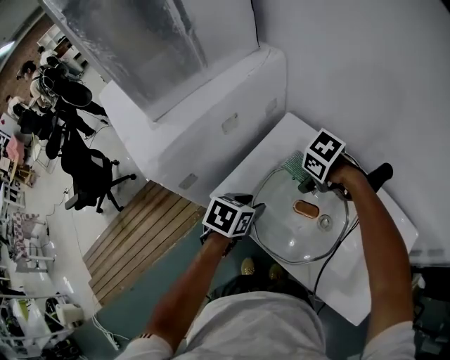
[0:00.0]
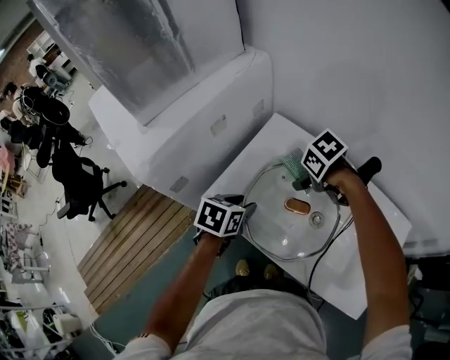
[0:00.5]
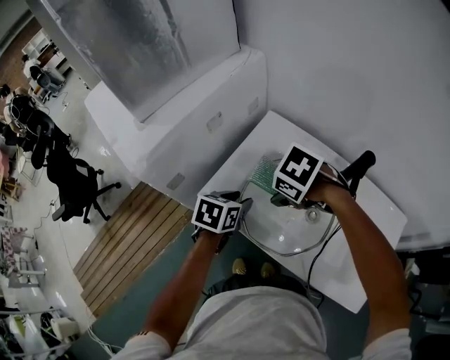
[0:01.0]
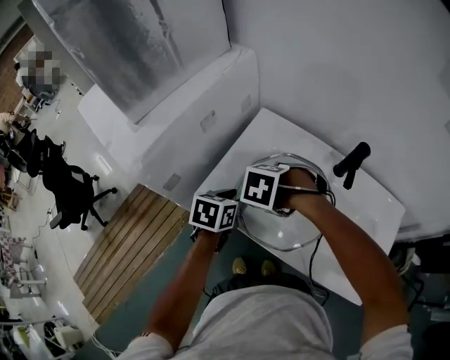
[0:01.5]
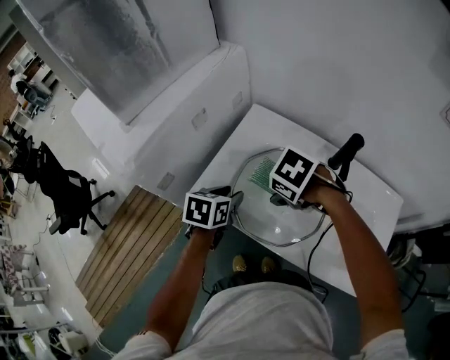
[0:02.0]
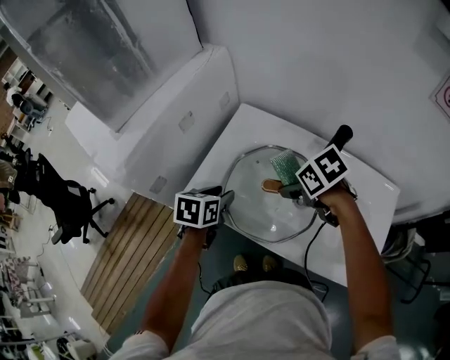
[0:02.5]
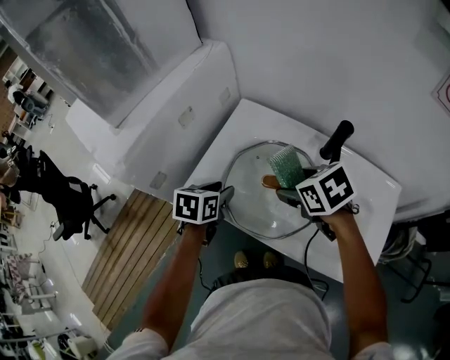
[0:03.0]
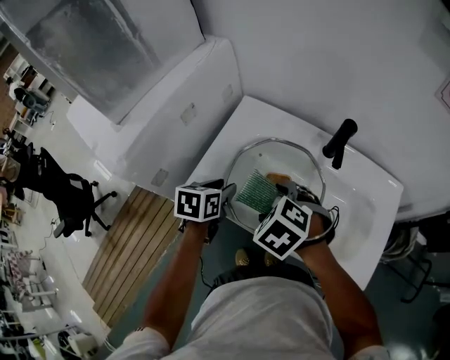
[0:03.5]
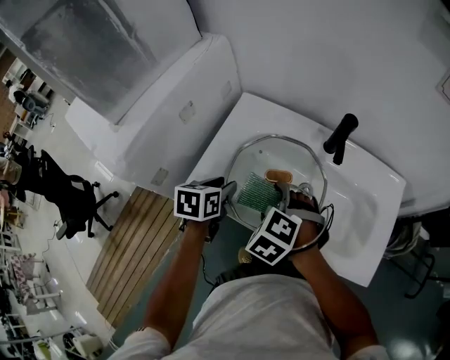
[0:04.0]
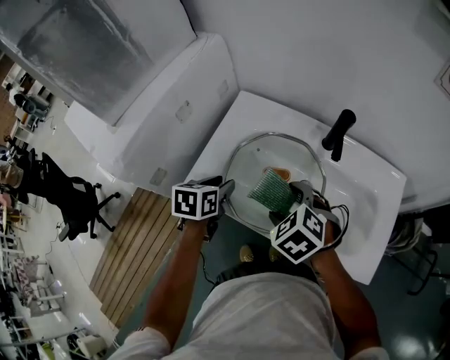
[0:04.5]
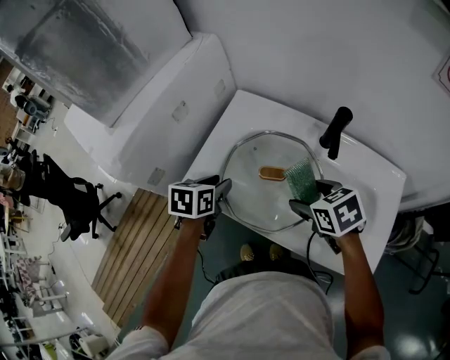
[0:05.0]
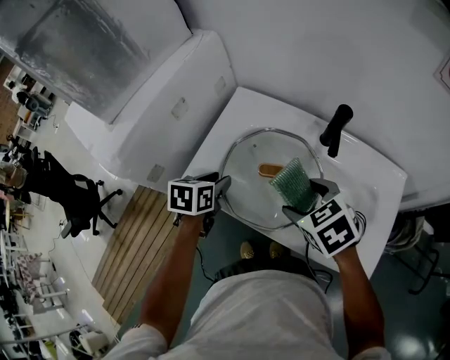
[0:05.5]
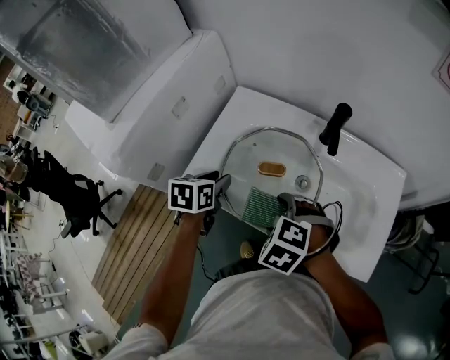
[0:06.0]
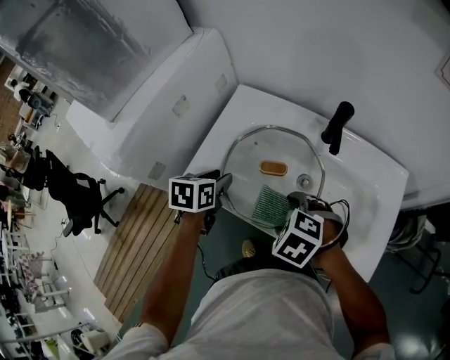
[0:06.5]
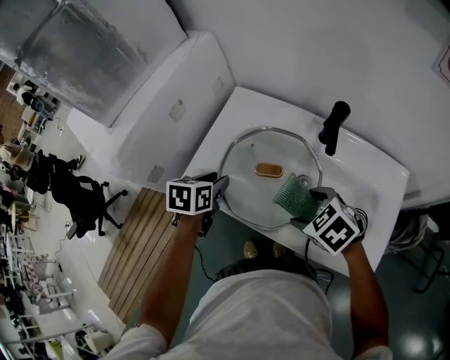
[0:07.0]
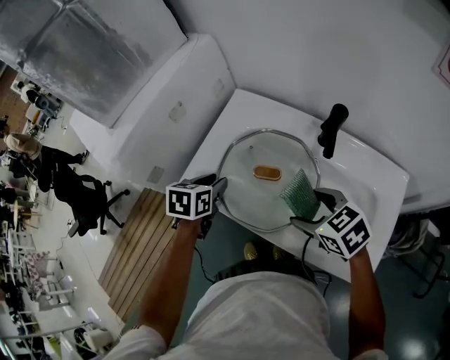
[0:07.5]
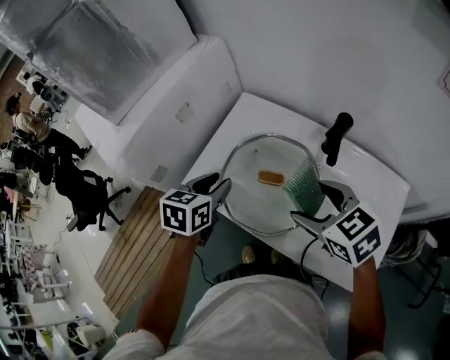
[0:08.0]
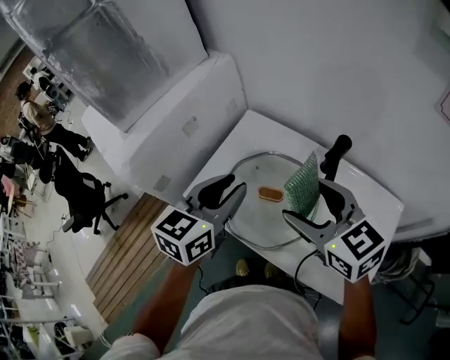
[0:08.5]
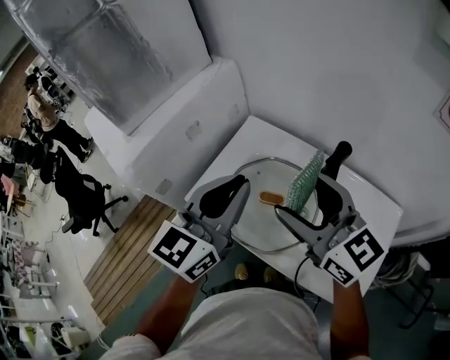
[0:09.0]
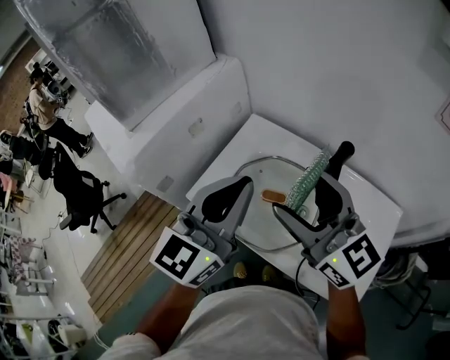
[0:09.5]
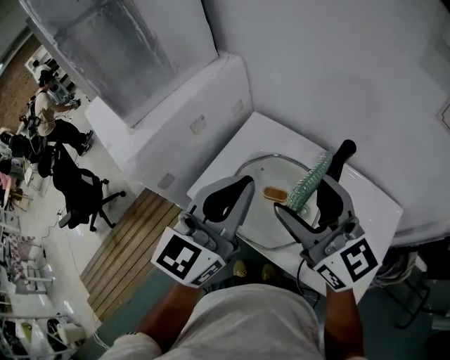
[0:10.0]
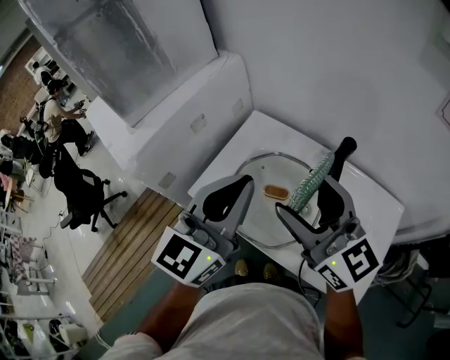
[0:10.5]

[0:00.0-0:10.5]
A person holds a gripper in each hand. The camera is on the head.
0:00.0 to 0:02.0: The right gripper moves about 10 cm.
0:02.0 to 0:04.0: The right gripper changes place by about 5 cm, and rotates about 30 degrees.
0:04.0 to 0:06.5: The right gripper heads backward and to the right, covering about 5 cm.
0:06.5 to 0:08.5: The two grippers go roughly 20 cm upward. The right gripper points its fingers about 50 degrees further upward. Meanwhile the left gripper points its fingers approximately 30 degrees further upward.
0:08.5 to 0:10.5: Both grippers move upward, about 10 cm. The left gripper turns by approximately 20 degrees, and closes up, while the right gripper changes its angle by roughly 30 degrees.

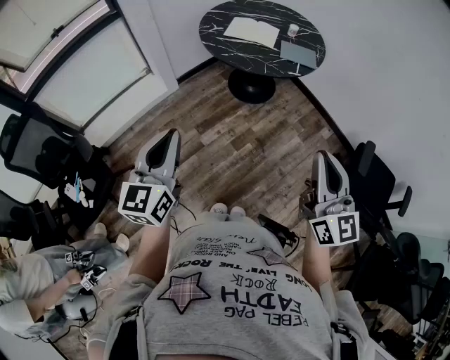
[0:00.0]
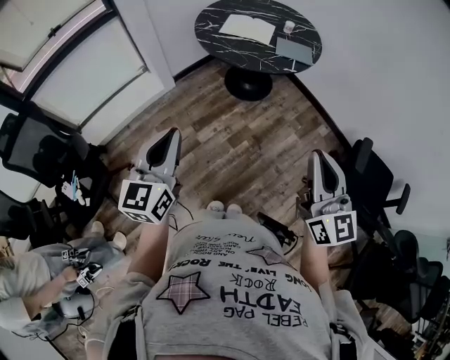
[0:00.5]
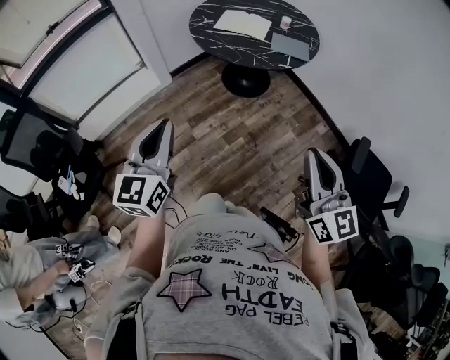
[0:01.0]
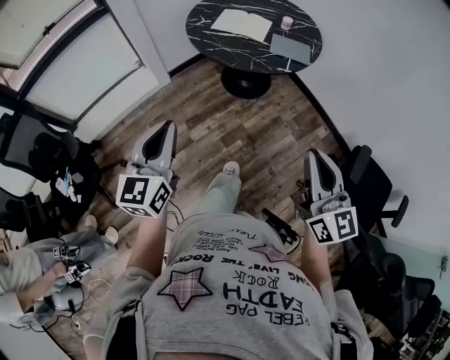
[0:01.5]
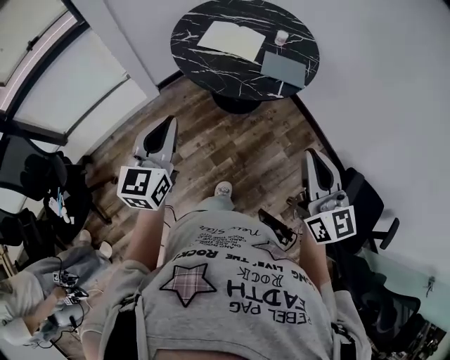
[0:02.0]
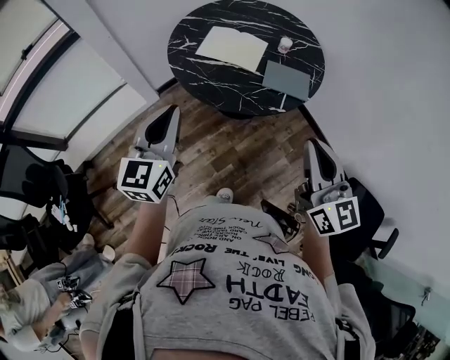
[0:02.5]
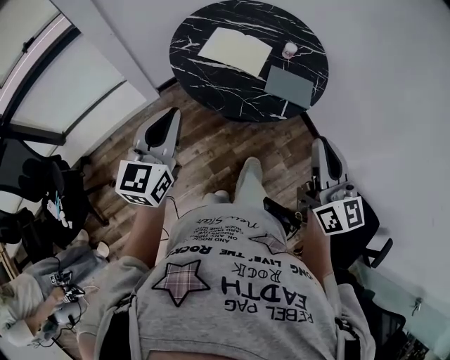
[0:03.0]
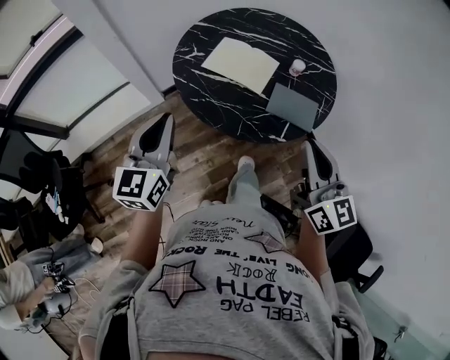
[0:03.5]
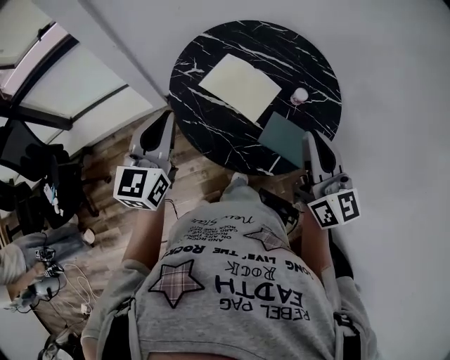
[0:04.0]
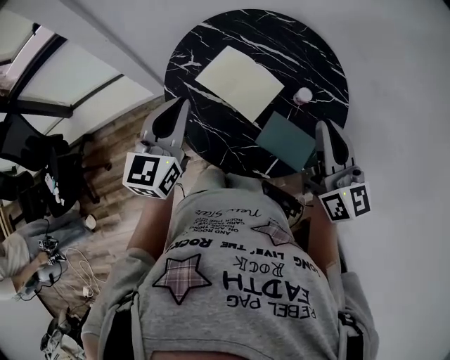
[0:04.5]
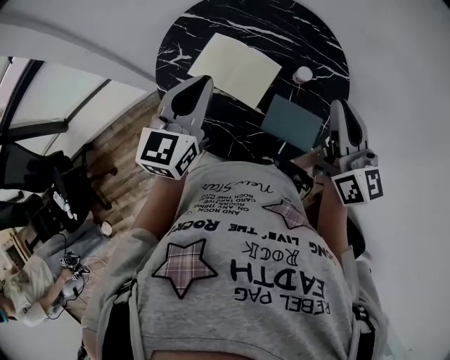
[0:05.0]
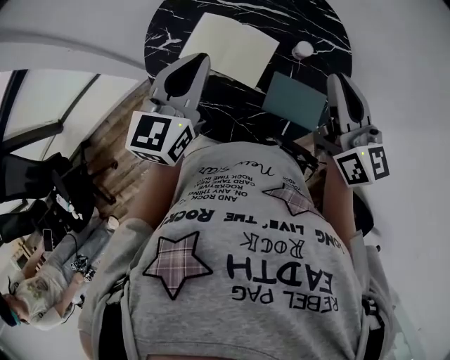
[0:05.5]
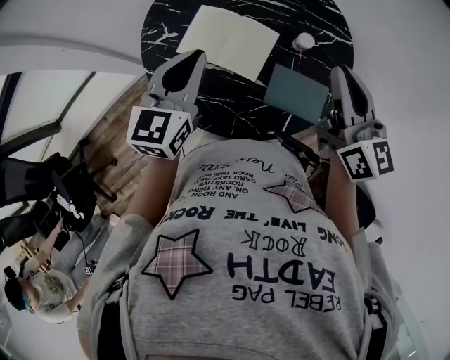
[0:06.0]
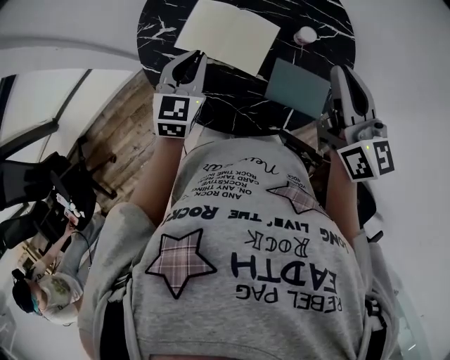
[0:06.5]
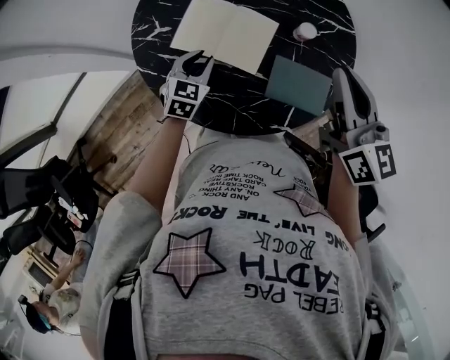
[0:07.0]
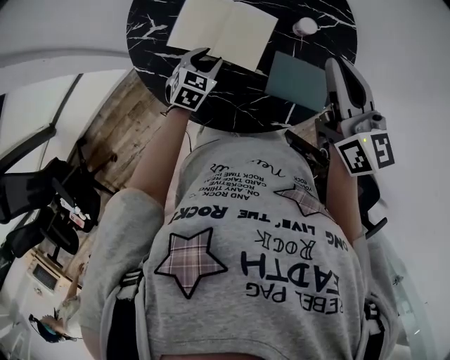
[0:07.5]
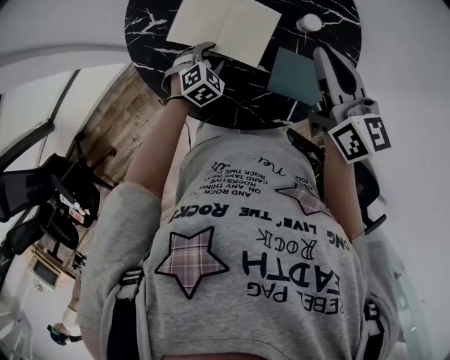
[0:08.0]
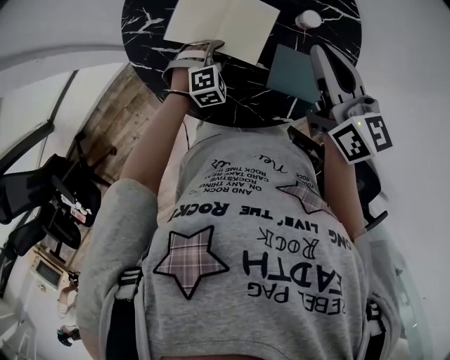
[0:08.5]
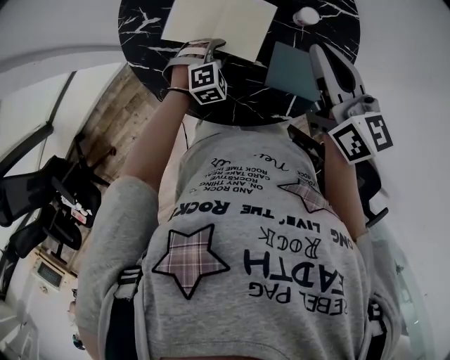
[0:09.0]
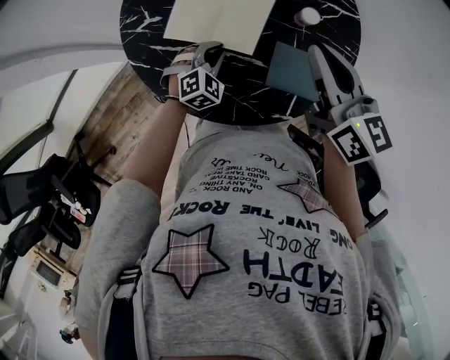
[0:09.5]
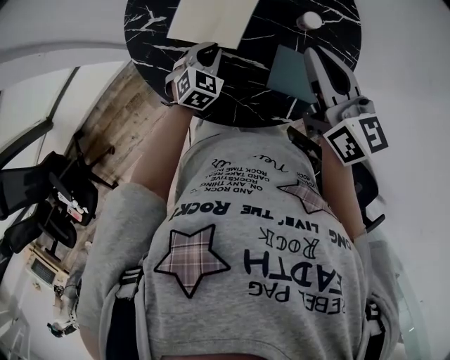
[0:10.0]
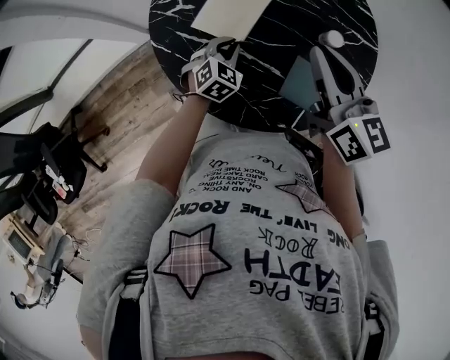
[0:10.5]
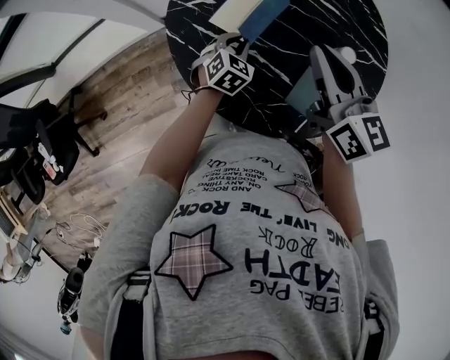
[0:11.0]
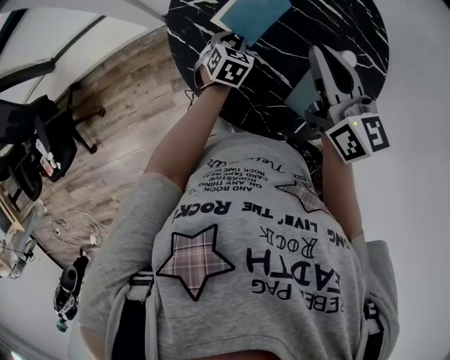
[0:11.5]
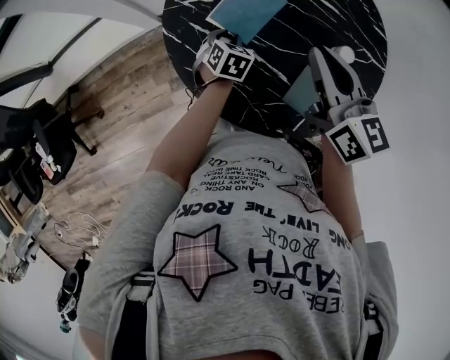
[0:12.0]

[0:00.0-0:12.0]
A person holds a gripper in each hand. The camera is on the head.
0:00.0 to 0:02.0: The grippers both shift forward and to the right by approximately 25 cm.
0:02.0 to 0:04.0: Both grippers travel together forward, some 35 cm.
0:04.0 to 0:06.0: The right gripper moves forward, roughly 10 cm. The left gripper is displaced forward, to the right and downward by some 20 cm, and swivels roughly 20 degrees.
0:06.0 to 0:08.0: The right gripper is displaced downward by some 5 cm; the left gripper moves downward, roughly 30 cm, angles its fingers downward, by some 40 degrees, and opens its fingers.
0:08.0 to 0:10.0: The left gripper closes up.
0:10.0 to 0:12.0: The grippers both shift to the left by approximately 5 cm. The left gripper swivels some 40 degrees.

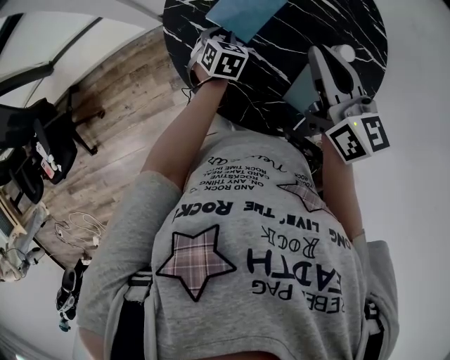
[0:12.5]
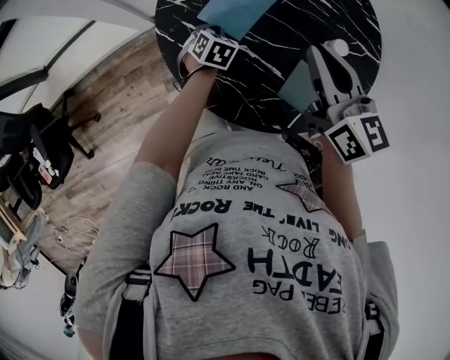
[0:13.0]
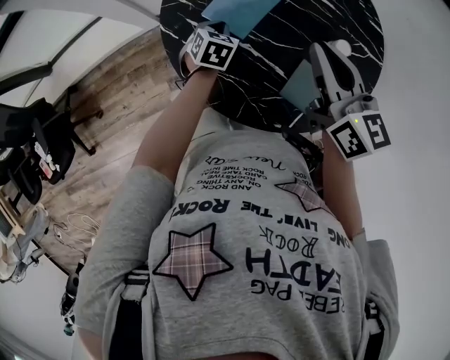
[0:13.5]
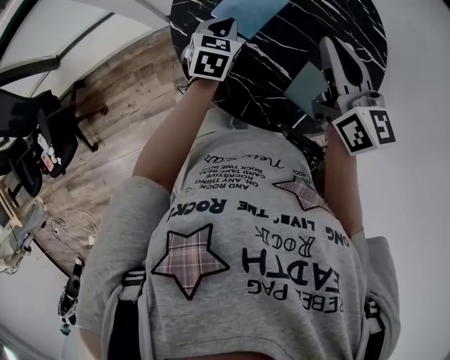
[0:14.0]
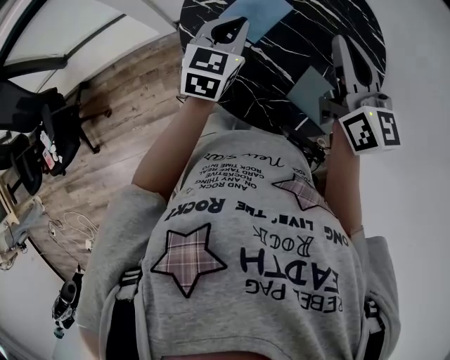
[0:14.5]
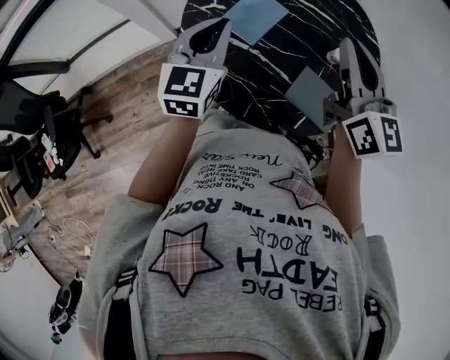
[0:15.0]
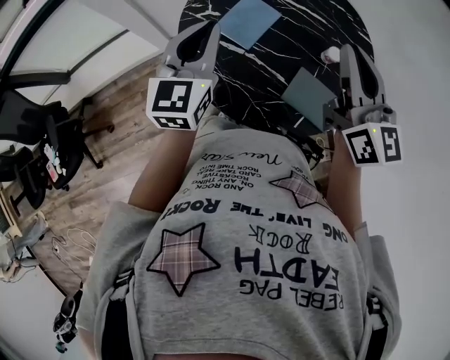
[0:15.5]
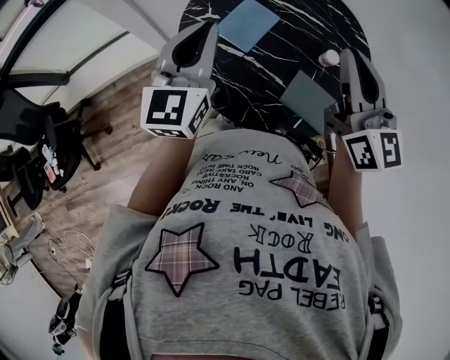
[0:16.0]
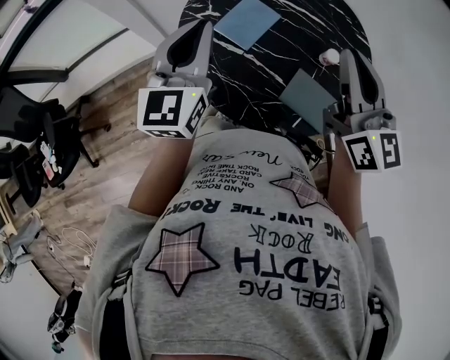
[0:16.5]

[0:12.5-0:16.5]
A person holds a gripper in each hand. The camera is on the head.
0:12.5 to 0:14.5: The left gripper travels upward by about 20 cm, tilts its fingers approximately 30 degrees upward, and closes up. Meanwhile the right gripper moves upward, about 5 cm.
0:14.5 to 0:16.5: The left gripper moves upward and backward, roughly 15 cm, and turns by approximately 20 degrees; the right gripper moves upward and backward, some 10 cm.
